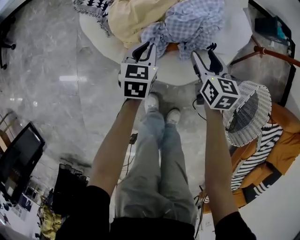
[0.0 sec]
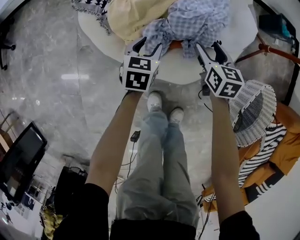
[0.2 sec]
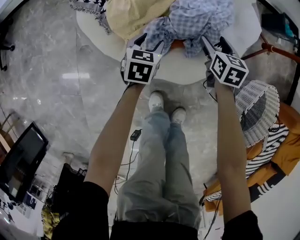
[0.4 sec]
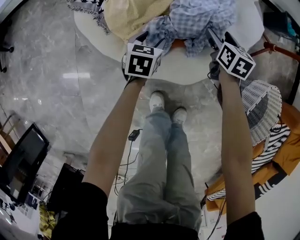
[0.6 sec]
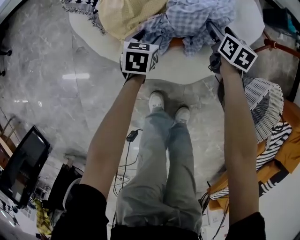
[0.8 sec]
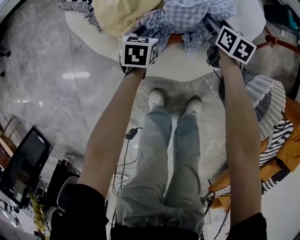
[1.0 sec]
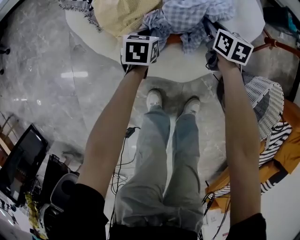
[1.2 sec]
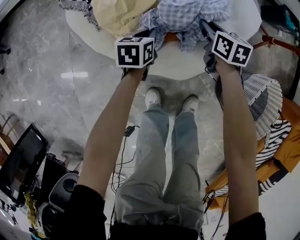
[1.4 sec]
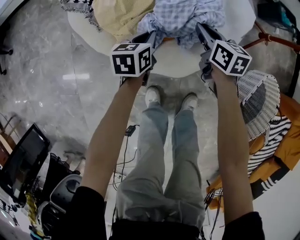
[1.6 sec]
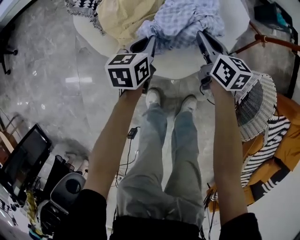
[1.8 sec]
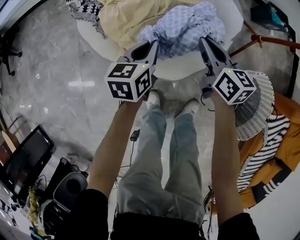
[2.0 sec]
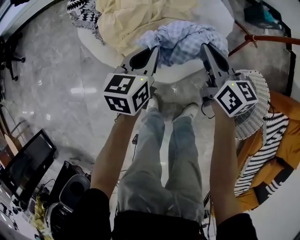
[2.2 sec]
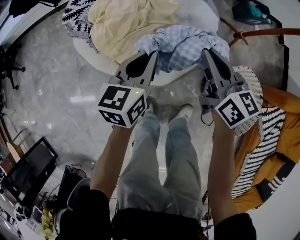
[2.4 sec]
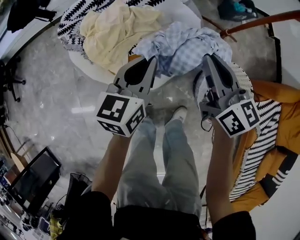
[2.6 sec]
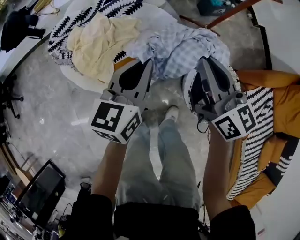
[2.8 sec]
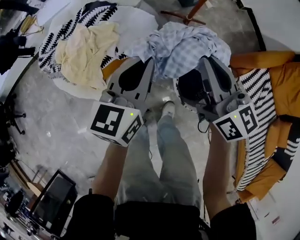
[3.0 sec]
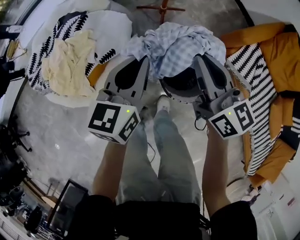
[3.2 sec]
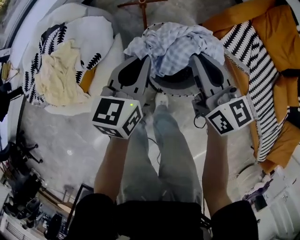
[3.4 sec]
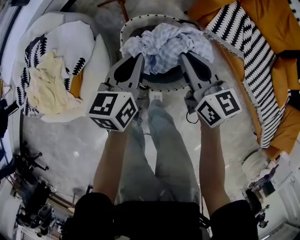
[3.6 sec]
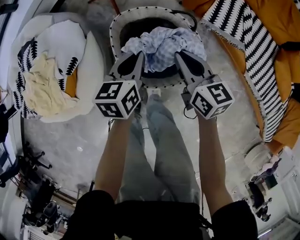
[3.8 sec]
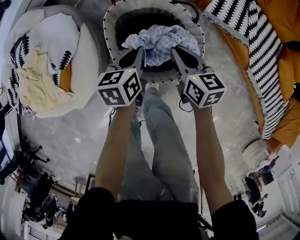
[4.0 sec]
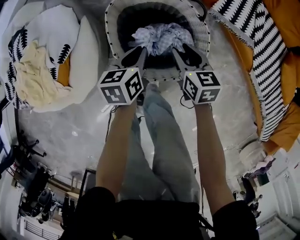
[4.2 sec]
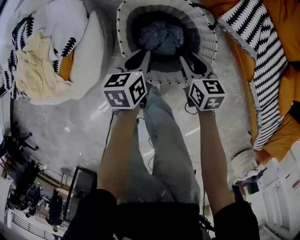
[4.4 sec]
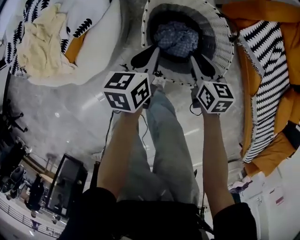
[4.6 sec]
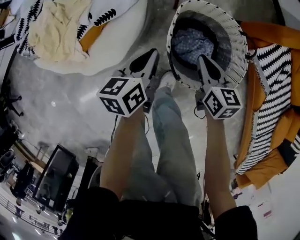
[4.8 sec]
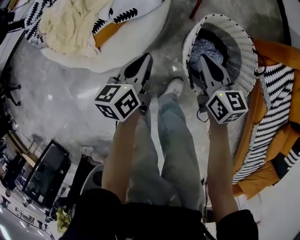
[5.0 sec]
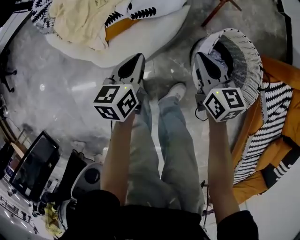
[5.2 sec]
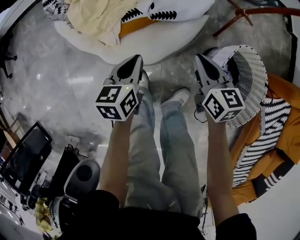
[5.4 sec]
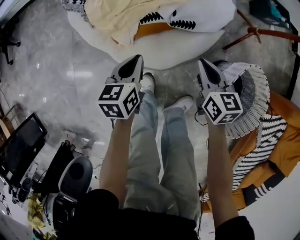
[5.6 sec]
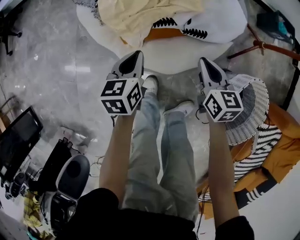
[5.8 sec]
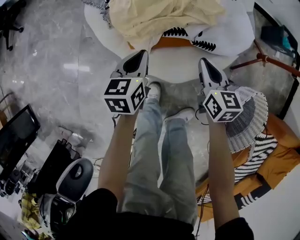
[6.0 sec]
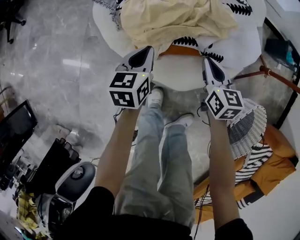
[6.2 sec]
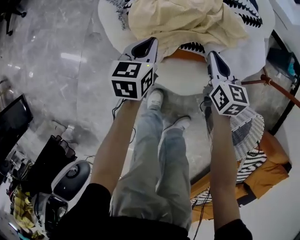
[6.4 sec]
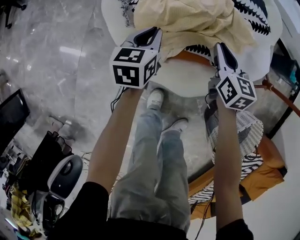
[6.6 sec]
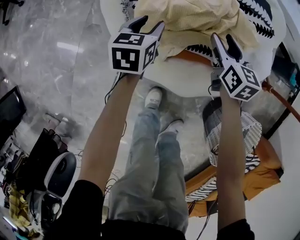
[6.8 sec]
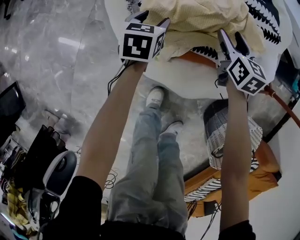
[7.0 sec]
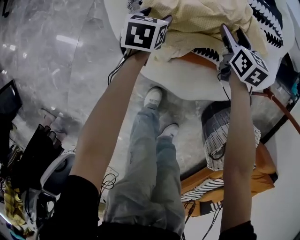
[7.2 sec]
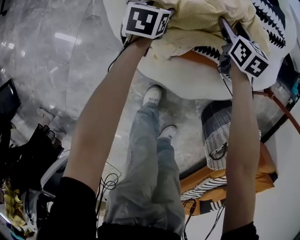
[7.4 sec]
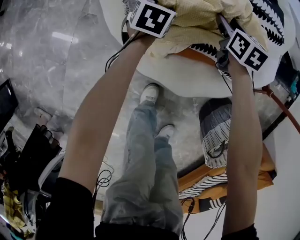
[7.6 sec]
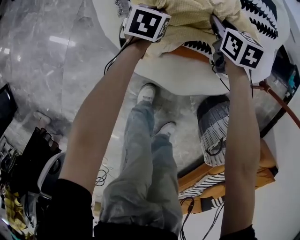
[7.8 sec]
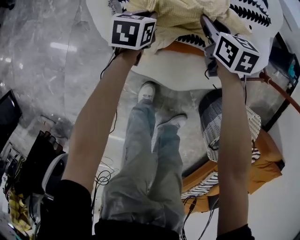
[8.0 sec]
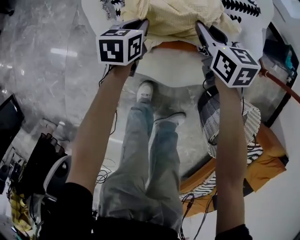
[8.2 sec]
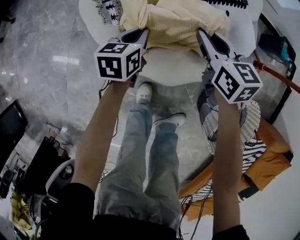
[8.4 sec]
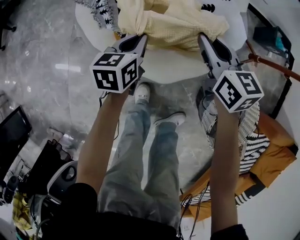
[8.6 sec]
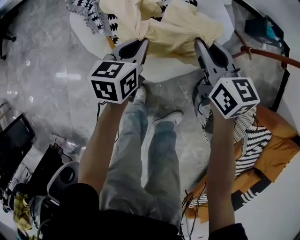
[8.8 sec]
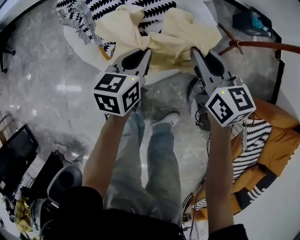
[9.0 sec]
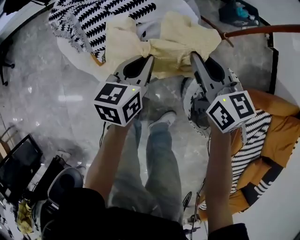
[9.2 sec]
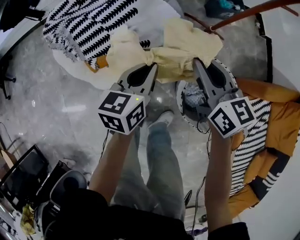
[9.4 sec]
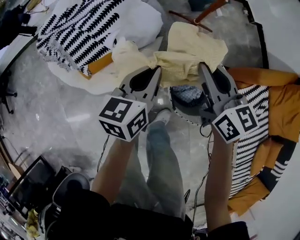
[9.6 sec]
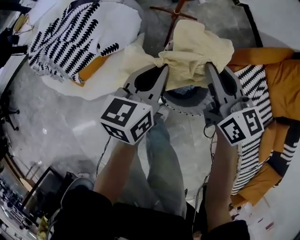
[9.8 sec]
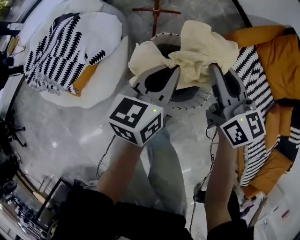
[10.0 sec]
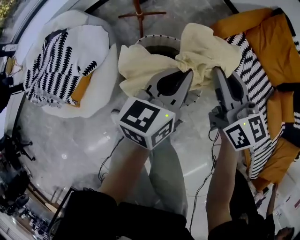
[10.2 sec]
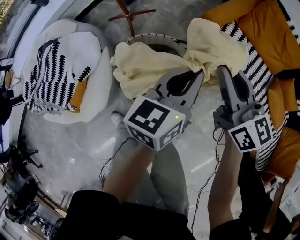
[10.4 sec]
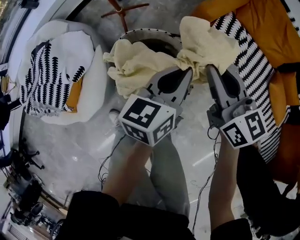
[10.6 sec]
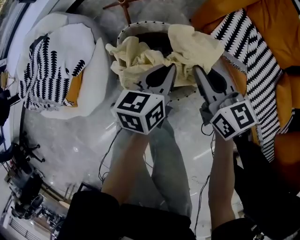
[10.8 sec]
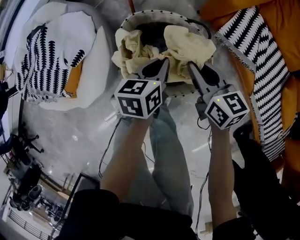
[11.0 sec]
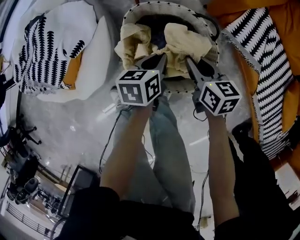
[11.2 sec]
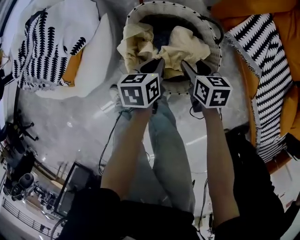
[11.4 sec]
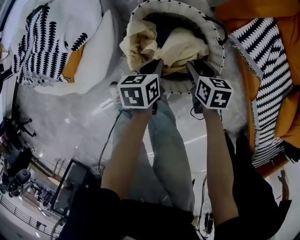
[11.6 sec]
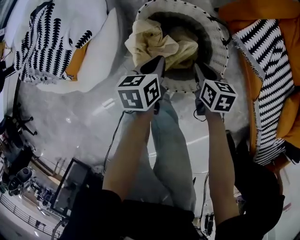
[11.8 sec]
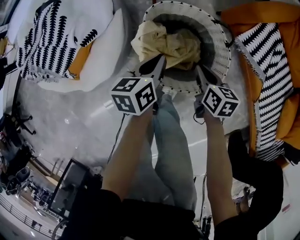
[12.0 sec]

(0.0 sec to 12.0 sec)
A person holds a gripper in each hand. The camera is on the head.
0.0 sec - 1.6 sec: The grippers both shift downward by some 5 cm. The right gripper closes; the left gripper opens, then closes again.
1.6 sec - 3.0 sec: Both grippers travel together upward and to the right, approximately 50 cm. The left gripper changes its angle by about 40 degrees; the right gripper tilts its fingers about 30 degrees upward.
3.0 sec - 4.4 sec: The two grippers go about 40 cm downward and to the right. The right gripper tilts its fingers roughly 40 degrees downward; the left gripper turns by about 40 degrees.
4.4 sec - 6.0 sec: The pair of grippers is taken approximately 60 cm. The left gripper rotates approximately 50 degrees; the right gripper turns by some 50 degrees.
6.0 sec - 7.6 sec: The right gripper travels forward and downward by approximately 25 cm, and opens up, while the left gripper travels forward, downward and to the left by some 25 cm, and opens its fingers.
7.6 sec - 9.0 sec: The left gripper shifts roughly 40 cm upward, to the right and backward, changes its angle by approximately 30 degrees, and closes up, while the right gripper goes about 40 cm upward, backward and to the right, swivels roughly 20 degrees, and closes its fingers.
9.0 sec - 10.4 sec: The two grippers travel together, approximately 60 cm. The left gripper turns by roughly 50 degrees; the right gripper changes its angle by some 50 degrees.
10.4 sec - 12.0 sec: The left gripper moves downward and to the left, some 30 cm, and turns by some 30 degrees, while the right gripper travels downward by approximately 30 cm, tilts its fingers some 30 degrees downward, and opens, then closes once more.

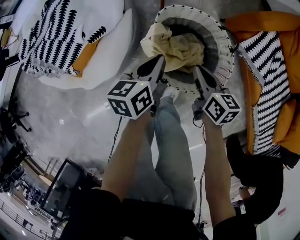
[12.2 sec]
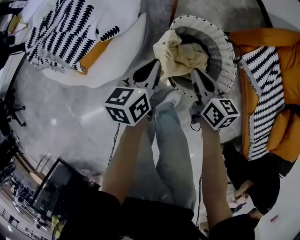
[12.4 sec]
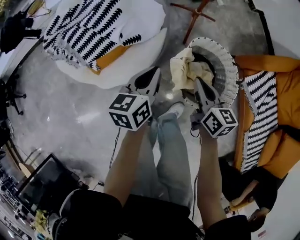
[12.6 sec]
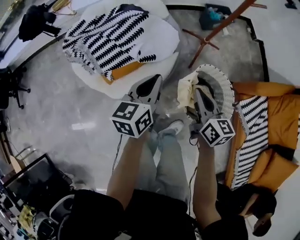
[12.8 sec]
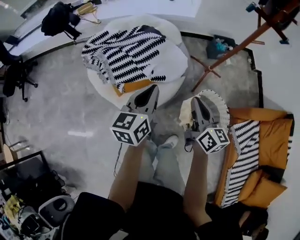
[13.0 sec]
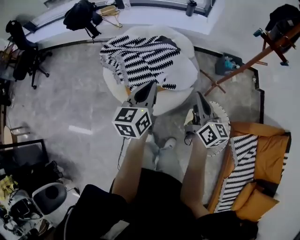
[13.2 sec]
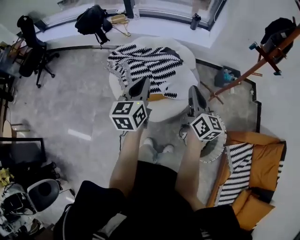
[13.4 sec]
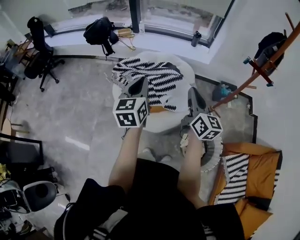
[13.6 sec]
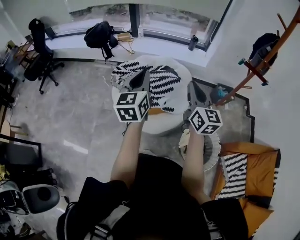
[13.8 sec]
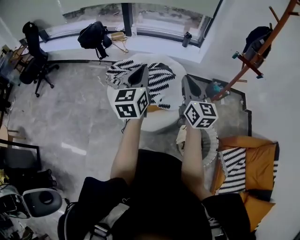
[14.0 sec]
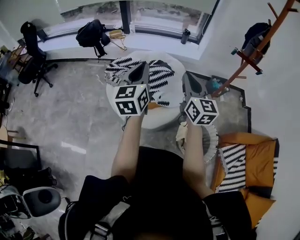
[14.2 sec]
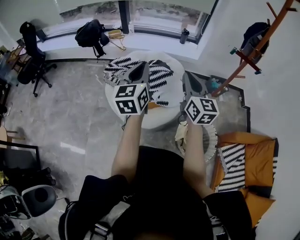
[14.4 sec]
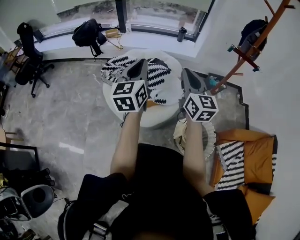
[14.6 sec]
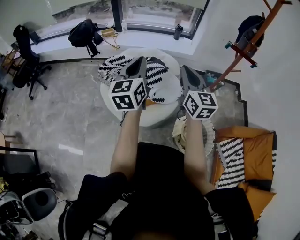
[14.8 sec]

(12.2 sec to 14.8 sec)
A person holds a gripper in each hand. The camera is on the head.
12.2 sec - 13.4 sec: Both grippers travel together upward, approximately 40 cm. The left gripper swivels roughly 50 degrees; the right gripper tilts its fingers roughly 30 degrees upward.
13.4 sec - 14.8 sec: The two grippers go about 10 cm upward. The right gripper swivels roughly 20 degrees.

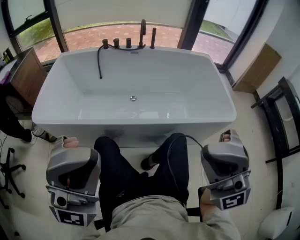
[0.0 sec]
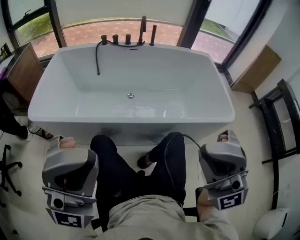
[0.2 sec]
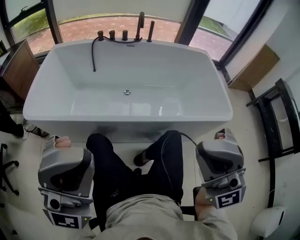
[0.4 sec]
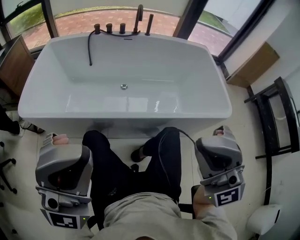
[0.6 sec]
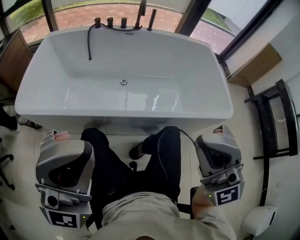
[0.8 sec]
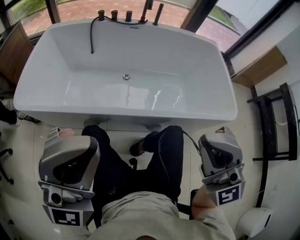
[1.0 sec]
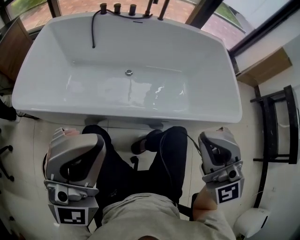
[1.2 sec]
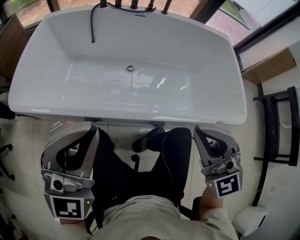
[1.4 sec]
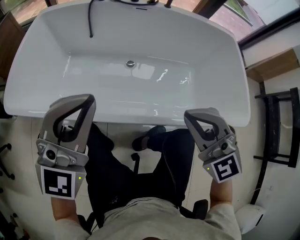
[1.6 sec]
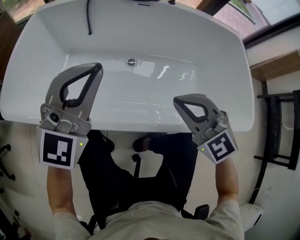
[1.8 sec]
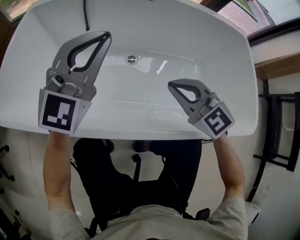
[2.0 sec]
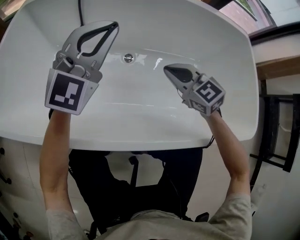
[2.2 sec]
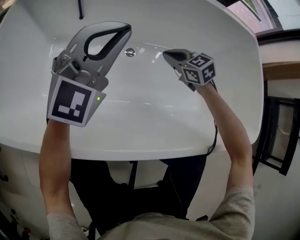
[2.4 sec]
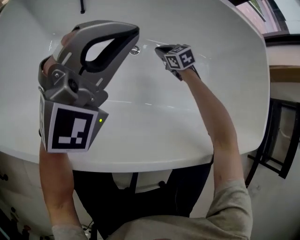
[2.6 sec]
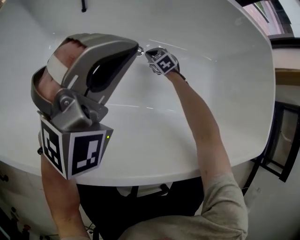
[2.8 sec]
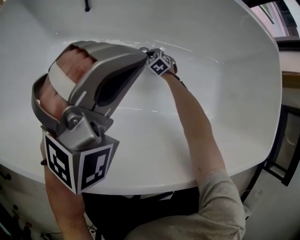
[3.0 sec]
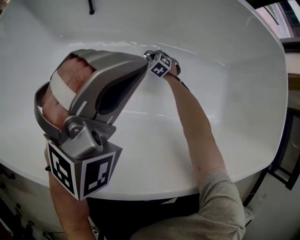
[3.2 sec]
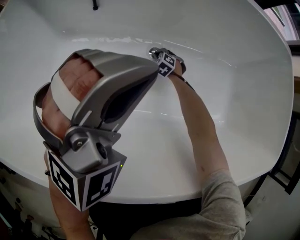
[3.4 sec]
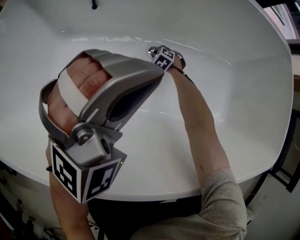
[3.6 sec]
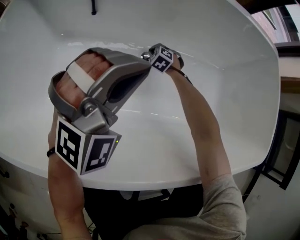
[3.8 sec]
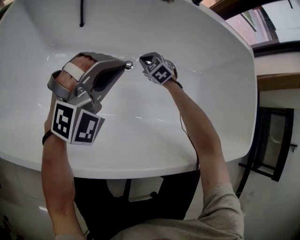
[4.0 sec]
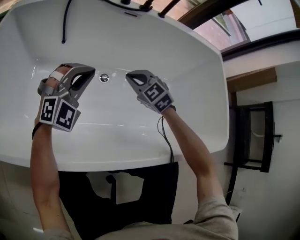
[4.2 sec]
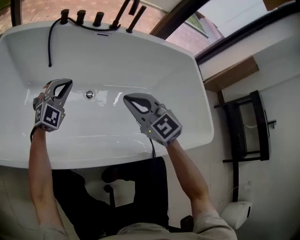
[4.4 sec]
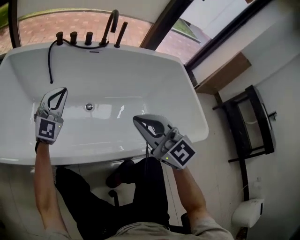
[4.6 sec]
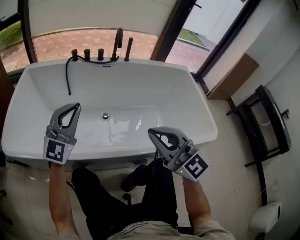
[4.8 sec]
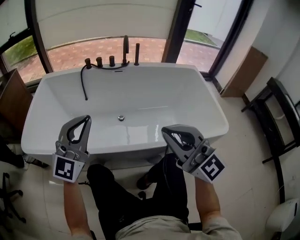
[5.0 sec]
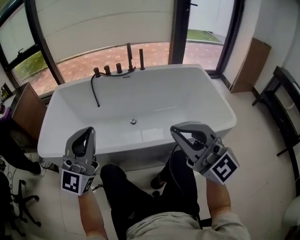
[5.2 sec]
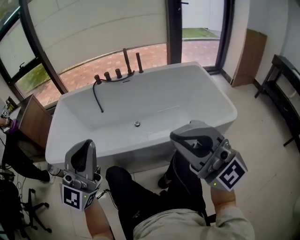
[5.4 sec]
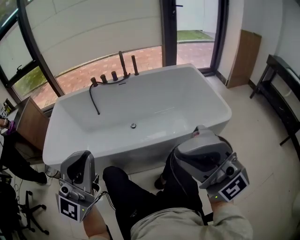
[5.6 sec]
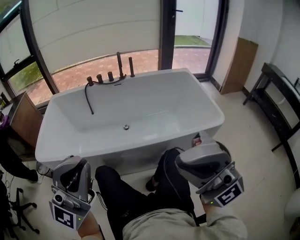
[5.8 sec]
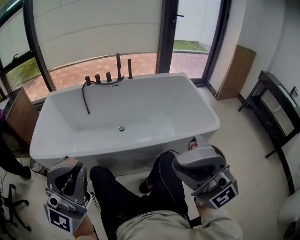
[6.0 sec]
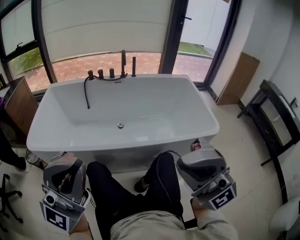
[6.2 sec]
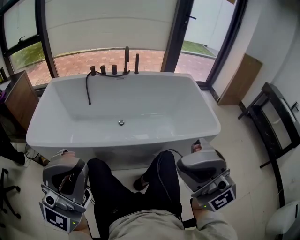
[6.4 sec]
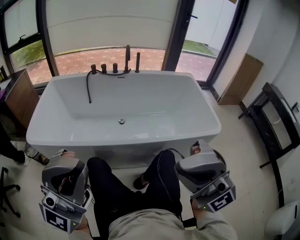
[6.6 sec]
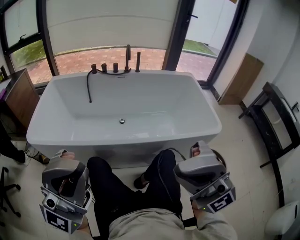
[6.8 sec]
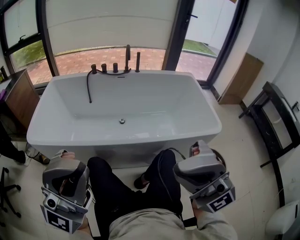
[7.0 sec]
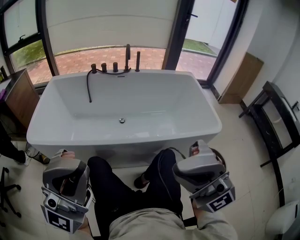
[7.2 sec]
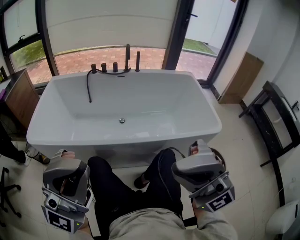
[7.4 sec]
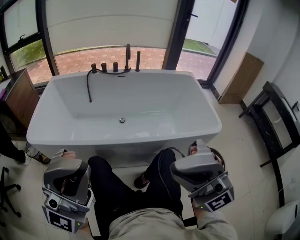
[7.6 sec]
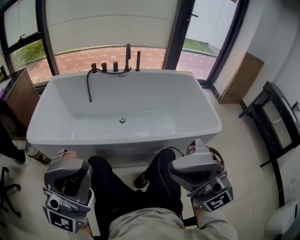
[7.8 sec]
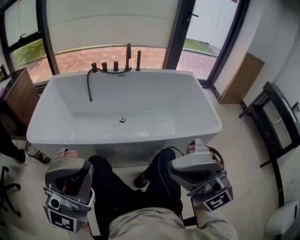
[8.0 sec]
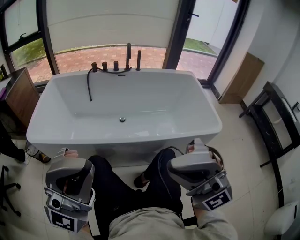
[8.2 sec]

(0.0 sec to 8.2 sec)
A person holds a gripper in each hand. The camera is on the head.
0.0 sec - 1.6 sec: Both grippers move forward and downward, roughly 30 cm. The right gripper tips its fingers downward by about 30 degrees. The left gripper changes its angle by roughly 30 degrees.
1.6 sec - 3.2 sec: The left gripper shifts roughly 30 cm forward and downward, and changes its angle by some 30 degrees, while the right gripper shifts about 80 cm downward and forward, and points its fingers approximately 50 degrees further downward.
3.2 sec - 5.0 sec: The left gripper goes some 35 cm backward and upward, and tips its fingers upward by approximately 30 degrees, while the right gripper goes some 90 cm upward and backward, and angles its fingers upward, by roughly 70 degrees.
5.0 sec - 6.6 sec: The grippers both shift backward and upward by roughly 25 cm. The right gripper swivels about 40 degrees. Meanwhile the left gripper swivels roughly 30 degrees.
6.6 sec - 8.2 sec: The grippers move only a little.
